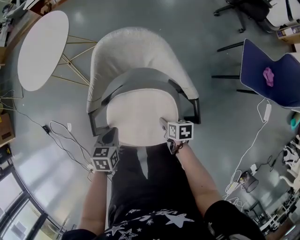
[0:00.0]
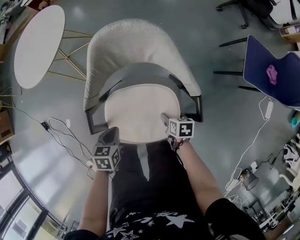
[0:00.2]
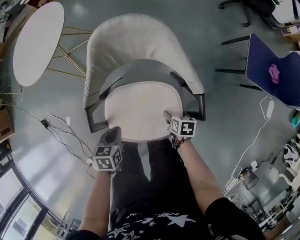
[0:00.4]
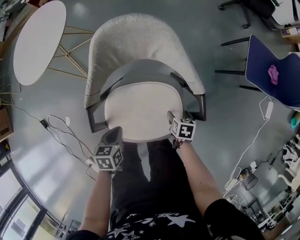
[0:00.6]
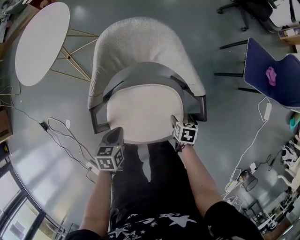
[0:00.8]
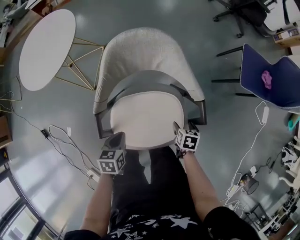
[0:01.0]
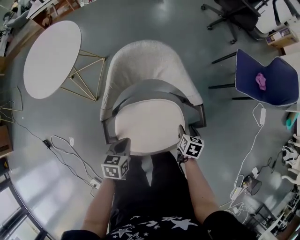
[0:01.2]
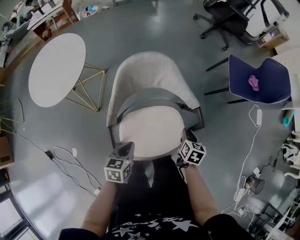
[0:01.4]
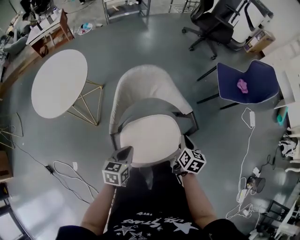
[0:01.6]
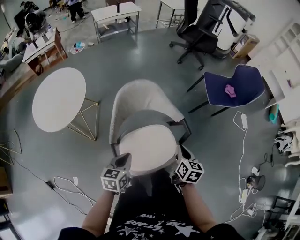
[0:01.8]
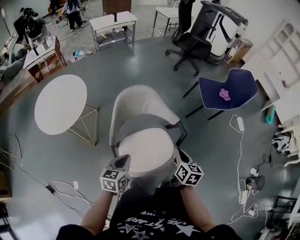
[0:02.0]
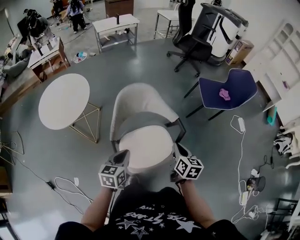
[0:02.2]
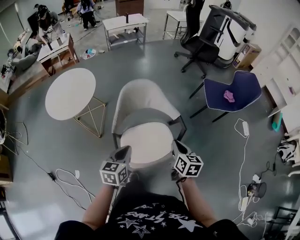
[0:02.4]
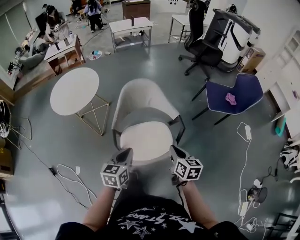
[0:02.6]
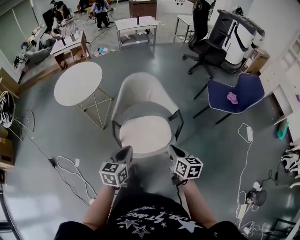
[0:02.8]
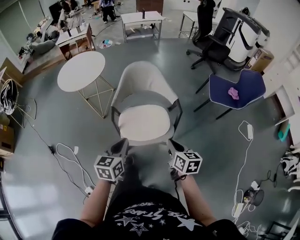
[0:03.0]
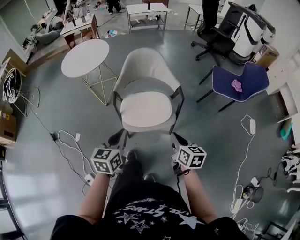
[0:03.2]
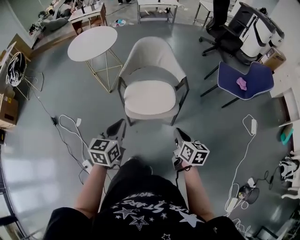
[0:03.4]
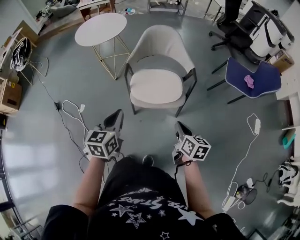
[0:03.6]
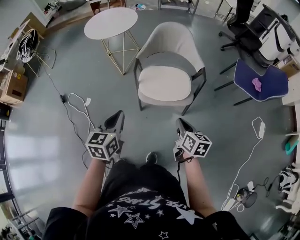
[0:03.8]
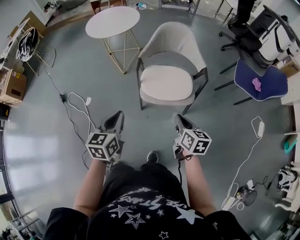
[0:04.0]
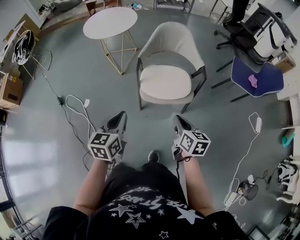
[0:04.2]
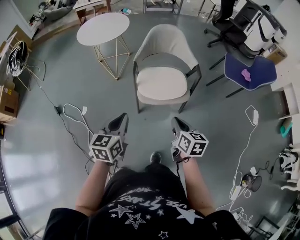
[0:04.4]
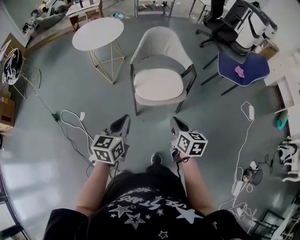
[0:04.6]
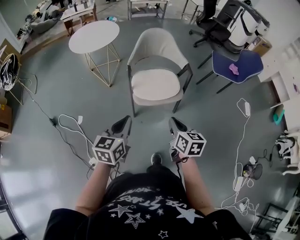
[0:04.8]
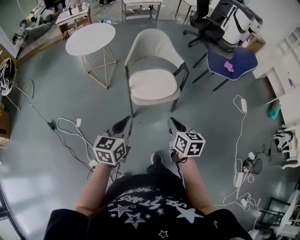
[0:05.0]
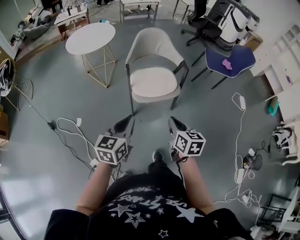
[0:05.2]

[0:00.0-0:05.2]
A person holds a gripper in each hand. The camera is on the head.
0:00.0 to 0:01.8: The left gripper is displaced upward by about 15 cm, and rotates about 30 degrees; the right gripper shifts some 25 cm upward, turns by approximately 50 degrees, and closes up.
0:01.8 to 0:03.4: The right gripper moves some 25 cm, and swivels some 30 degrees, while the left gripper moves approximately 30 cm, and turns by about 30 degrees.
0:03.4 to 0:05.2: The left gripper heads backward and to the left, covering roughly 15 cm, while the right gripper goes about 20 cm to the left and backward.

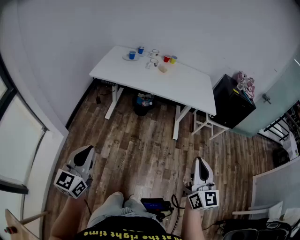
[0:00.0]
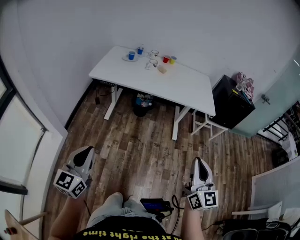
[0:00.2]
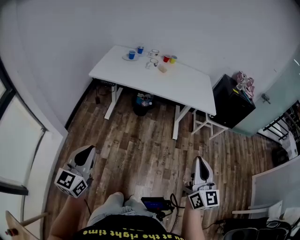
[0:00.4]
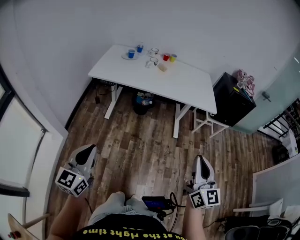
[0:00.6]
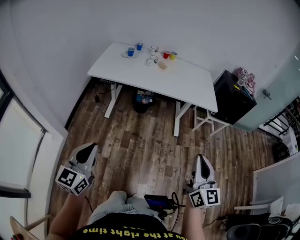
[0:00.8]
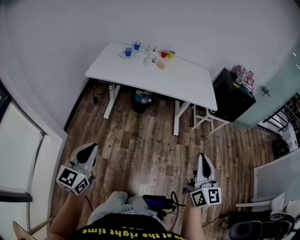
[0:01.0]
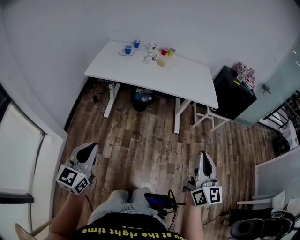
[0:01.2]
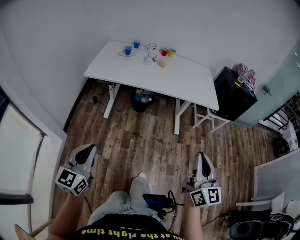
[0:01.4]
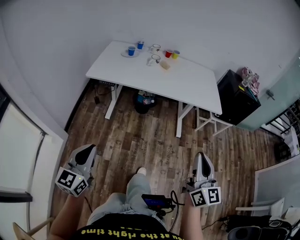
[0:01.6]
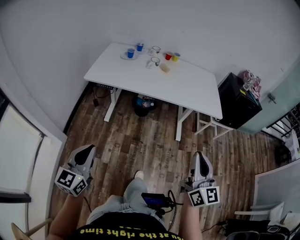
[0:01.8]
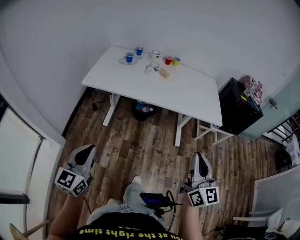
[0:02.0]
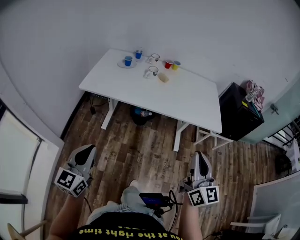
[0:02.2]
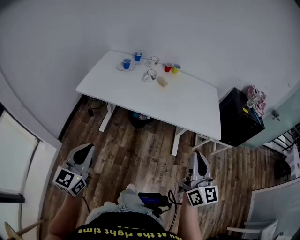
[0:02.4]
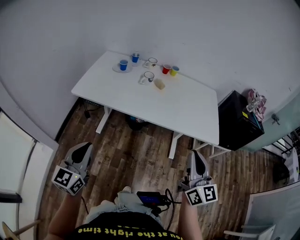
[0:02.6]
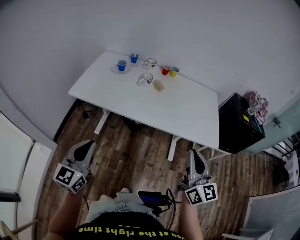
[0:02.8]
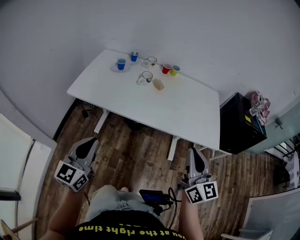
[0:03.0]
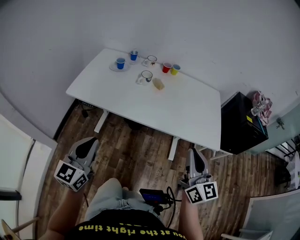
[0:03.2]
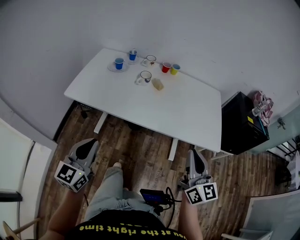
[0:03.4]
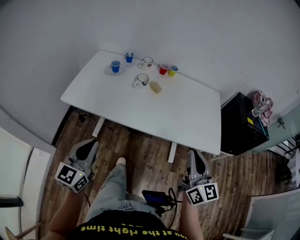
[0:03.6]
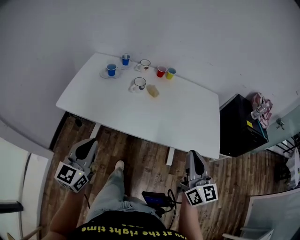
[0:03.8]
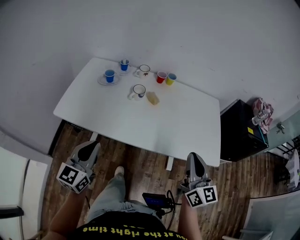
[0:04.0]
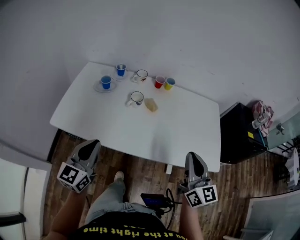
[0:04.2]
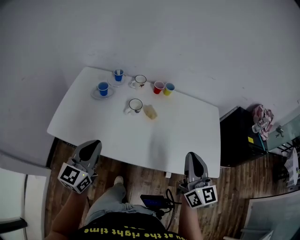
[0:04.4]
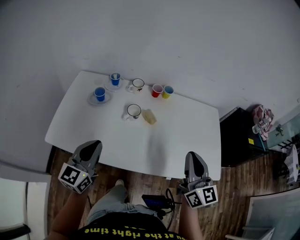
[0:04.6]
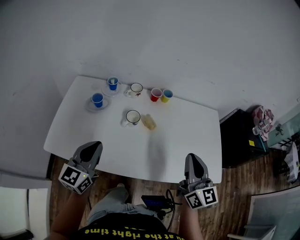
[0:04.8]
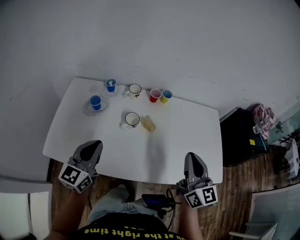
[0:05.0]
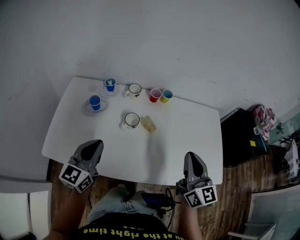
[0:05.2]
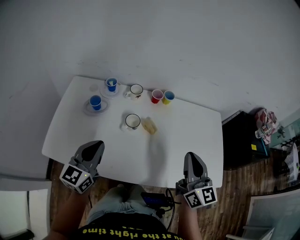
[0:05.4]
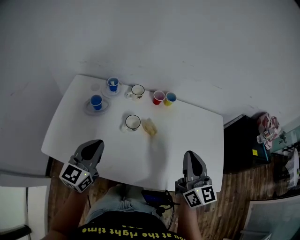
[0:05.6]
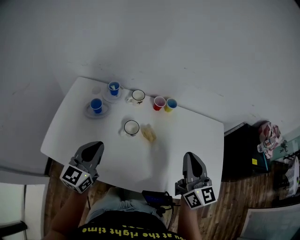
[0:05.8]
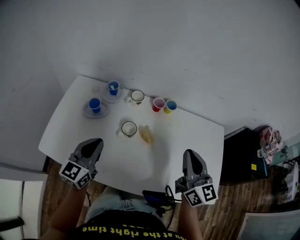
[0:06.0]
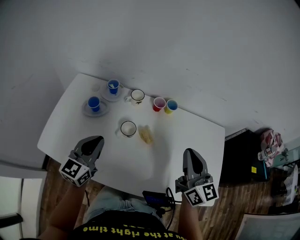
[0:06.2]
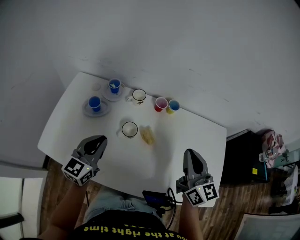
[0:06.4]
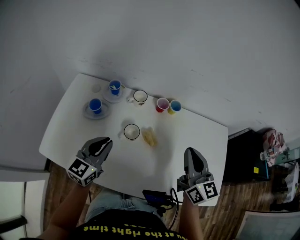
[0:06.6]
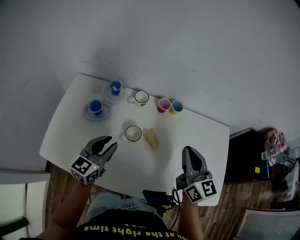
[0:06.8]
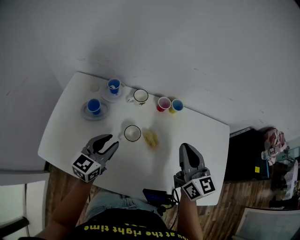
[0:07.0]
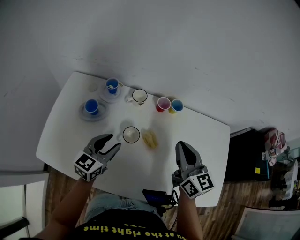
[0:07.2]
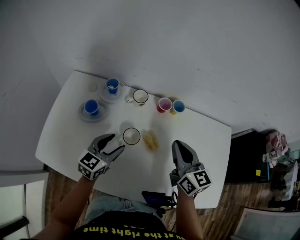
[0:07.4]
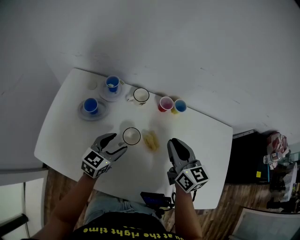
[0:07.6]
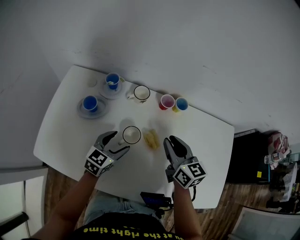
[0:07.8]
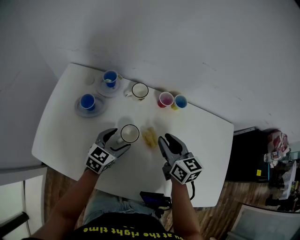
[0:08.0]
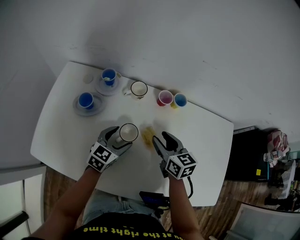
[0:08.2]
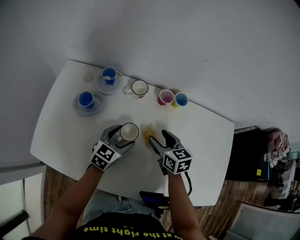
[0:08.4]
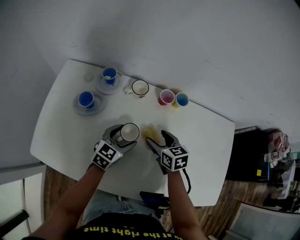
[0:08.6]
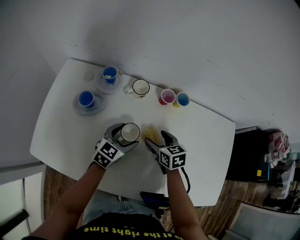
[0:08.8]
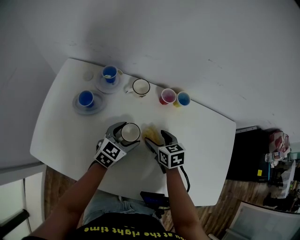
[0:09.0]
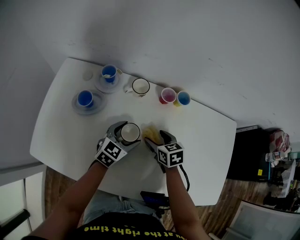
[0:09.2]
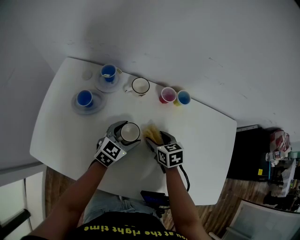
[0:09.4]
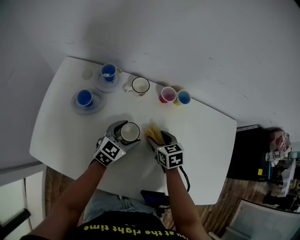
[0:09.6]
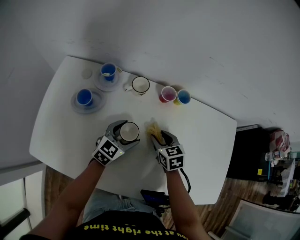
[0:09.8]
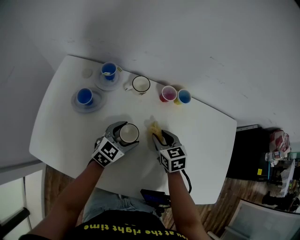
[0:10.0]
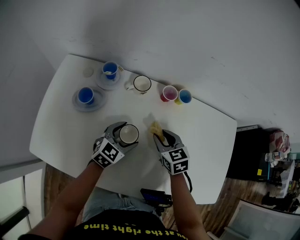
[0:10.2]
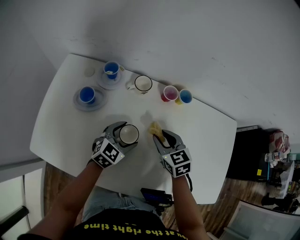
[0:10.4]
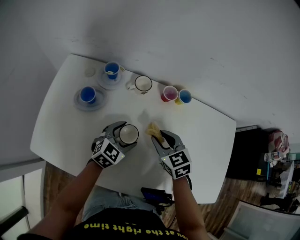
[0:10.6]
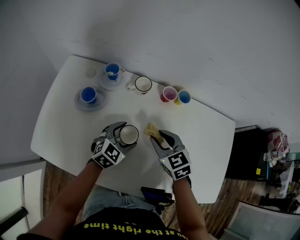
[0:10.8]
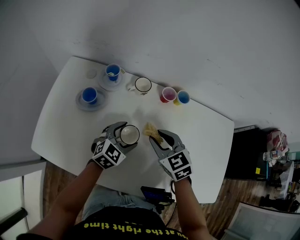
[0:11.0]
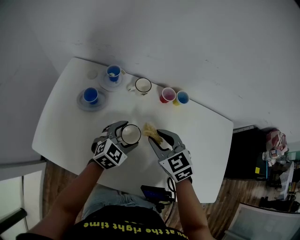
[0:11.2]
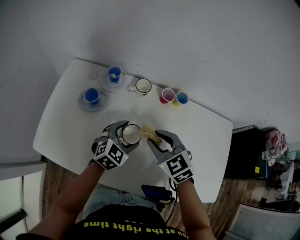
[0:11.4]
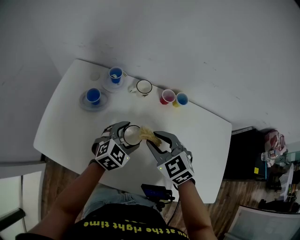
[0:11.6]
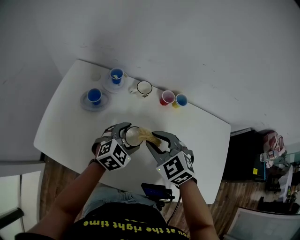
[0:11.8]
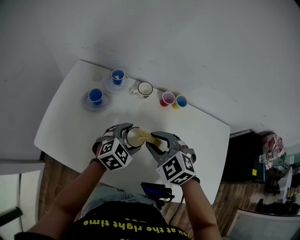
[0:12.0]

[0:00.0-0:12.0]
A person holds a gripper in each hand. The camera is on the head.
0:00.0 to 0:01.6: The right gripper heads forward and to the left, covering about 10 cm, while the left gripper moves forward, roughly 10 cm.
0:01.6 to 0:03.0: The right gripper shifts roughly 30 cm forward, while the left gripper moves forward and to the right, some 30 cm.
0:03.0 to 0:04.4: Both grippers travel together forward, about 25 cm.
0:04.4 to 0:06.0: The two grippers go some 20 cm forward.
0:06.0 to 0:07.6: The right gripper shifts approximately 20 cm downward, forward and to the left, while the left gripper moves downward and forward, about 15 cm, turns by approximately 20 degrees, and opens its fingers.
0:07.6 to 0:09.0: The left gripper goes roughly 5 cm to the right and downward; the right gripper is displaced downward by roughly 20 cm, tilts its fingers some 30 degrees downward, and opens up.
0:09.0 to 0:10.4: The right gripper shifts about 5 cm upward, and closes.
0:10.4 to 0:12.0: The right gripper shifts about 15 cm upward, backward and to the left, and rotates some 40 degrees; the left gripper travels upward by some 5 cm.

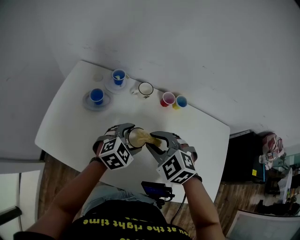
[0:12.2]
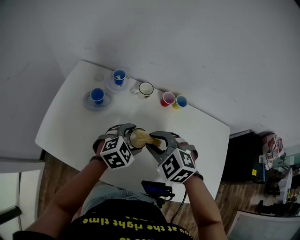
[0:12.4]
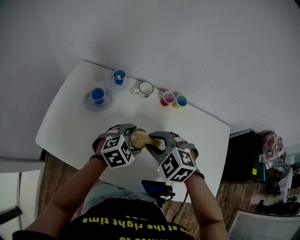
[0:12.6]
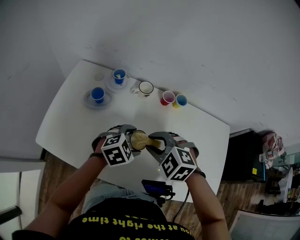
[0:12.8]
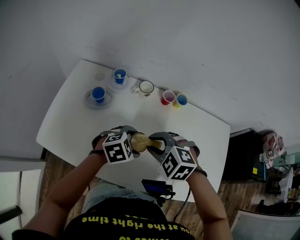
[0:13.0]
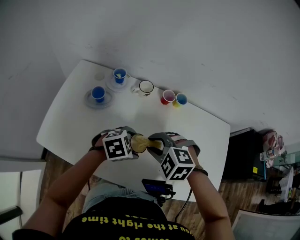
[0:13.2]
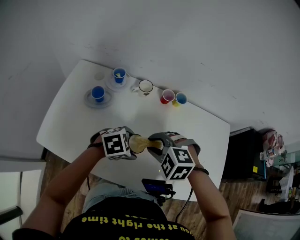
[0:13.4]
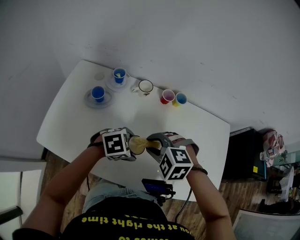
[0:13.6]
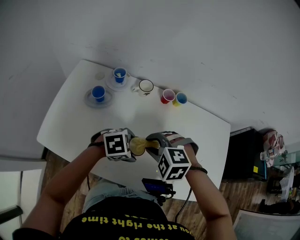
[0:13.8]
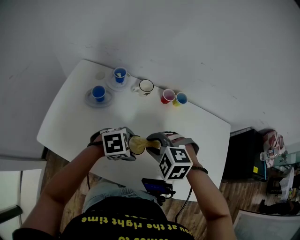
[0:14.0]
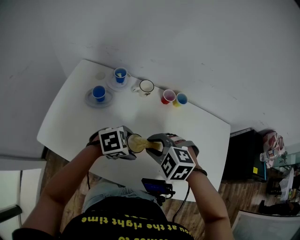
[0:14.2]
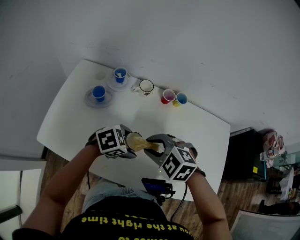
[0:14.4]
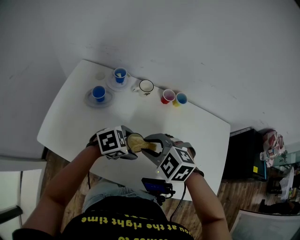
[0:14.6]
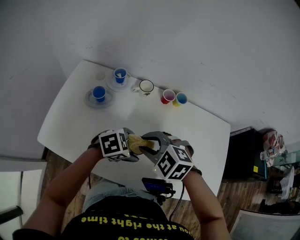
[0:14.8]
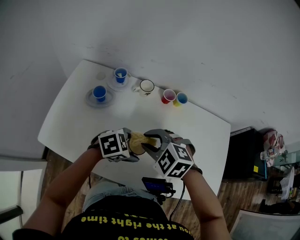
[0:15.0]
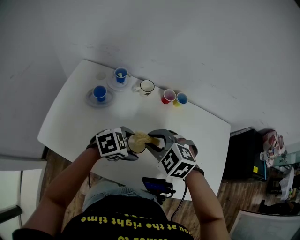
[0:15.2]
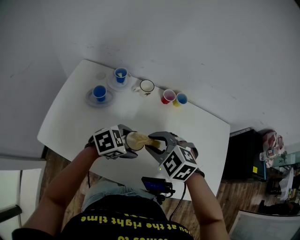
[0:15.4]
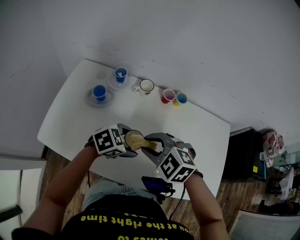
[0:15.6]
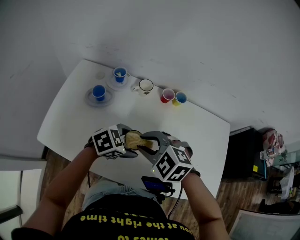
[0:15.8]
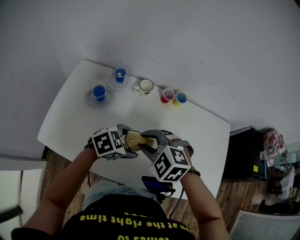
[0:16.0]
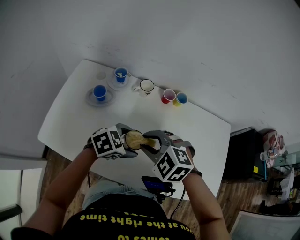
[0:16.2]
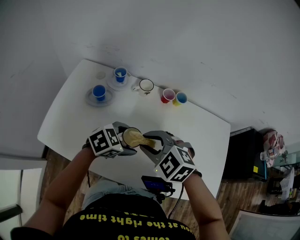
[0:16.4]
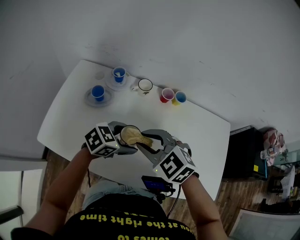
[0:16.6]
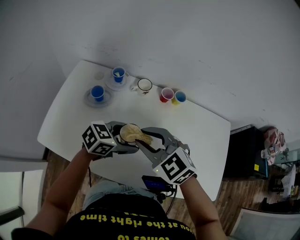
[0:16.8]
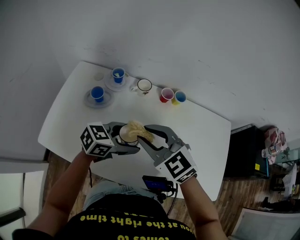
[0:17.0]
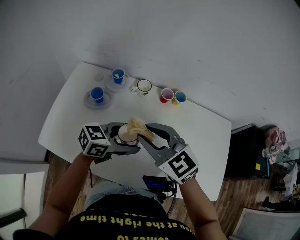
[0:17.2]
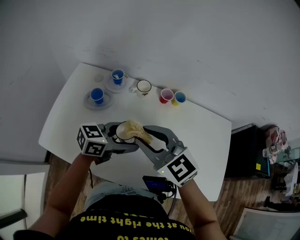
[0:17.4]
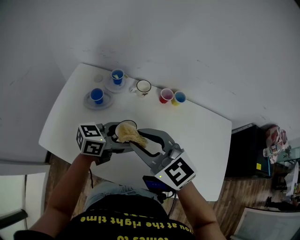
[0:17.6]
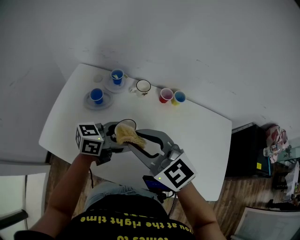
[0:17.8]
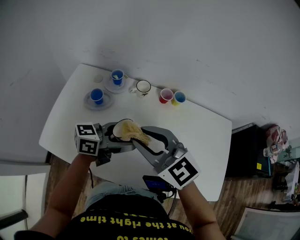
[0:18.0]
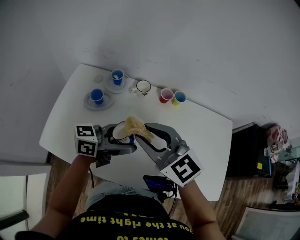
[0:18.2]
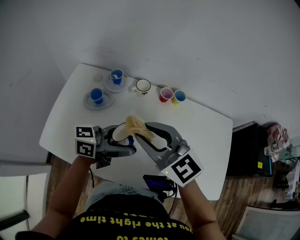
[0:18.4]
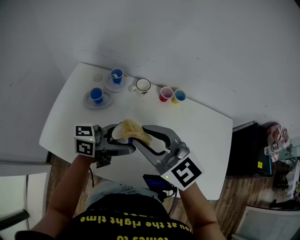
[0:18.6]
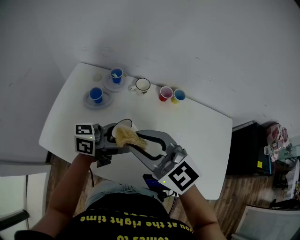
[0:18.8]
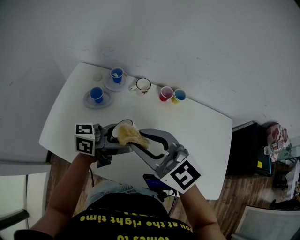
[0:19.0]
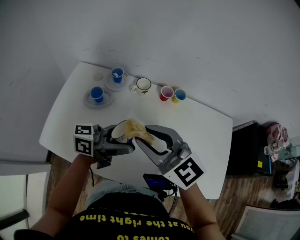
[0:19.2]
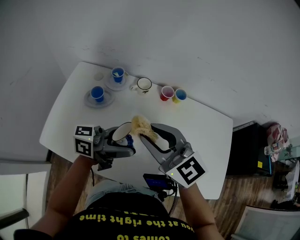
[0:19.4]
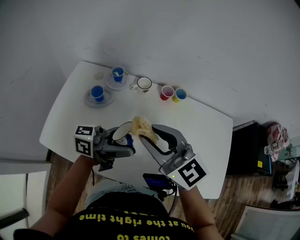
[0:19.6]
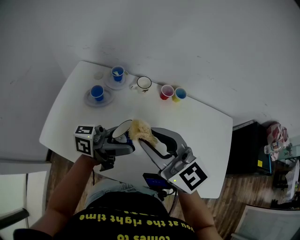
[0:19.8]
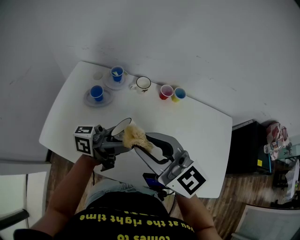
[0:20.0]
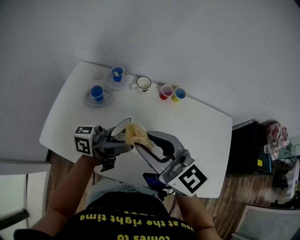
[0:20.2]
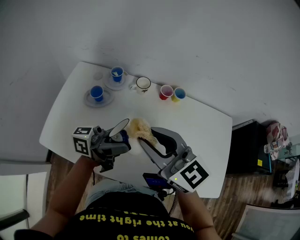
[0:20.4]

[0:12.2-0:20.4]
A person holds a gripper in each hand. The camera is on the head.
0:12.2 to 0:13.8: The left gripper ends up roughly 10 cm from where it was, and swivels some 30 degrees, while the right gripper changes place by some 5 cm, and swivels some 20 degrees.
0:13.8 to 0:15.4: There are only small adjustments of the grippers.
0:15.4 to 0:17.2: Both grippers move upward, approximately 5 cm. The right gripper angles its fingers upward, by approximately 30 degrees; the left gripper changes its angle by some 30 degrees.
0:17.2 to 0:18.8: The left gripper moves upward, about 5 cm, and swivels about 30 degrees. Meanwhile the right gripper ends up about 5 cm from where it was.
0:18.8 to 0:20.4: The left gripper turns by some 20 degrees.
